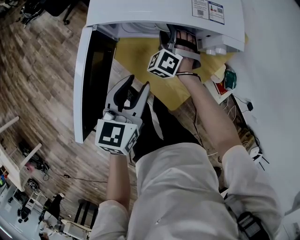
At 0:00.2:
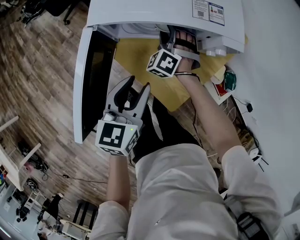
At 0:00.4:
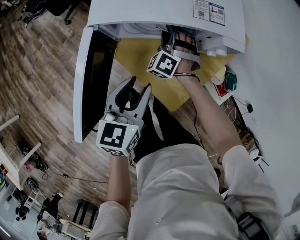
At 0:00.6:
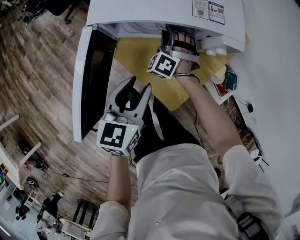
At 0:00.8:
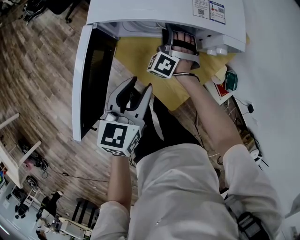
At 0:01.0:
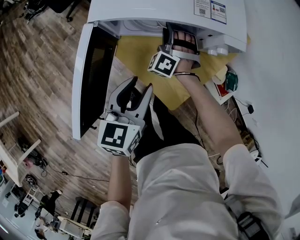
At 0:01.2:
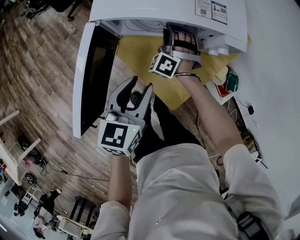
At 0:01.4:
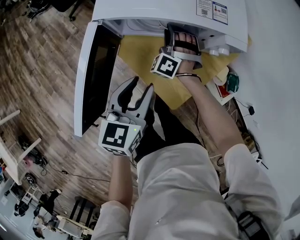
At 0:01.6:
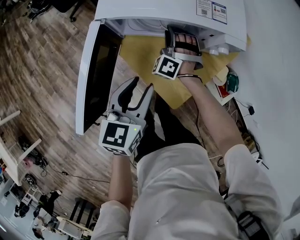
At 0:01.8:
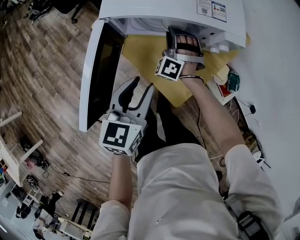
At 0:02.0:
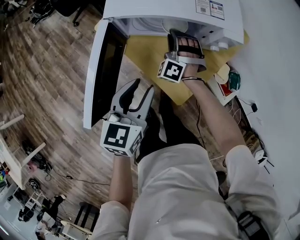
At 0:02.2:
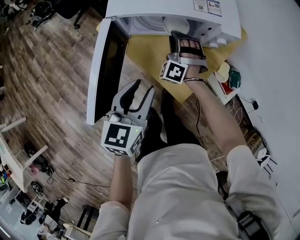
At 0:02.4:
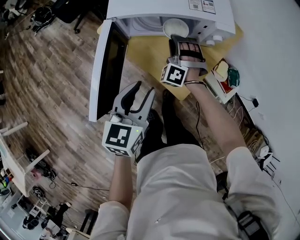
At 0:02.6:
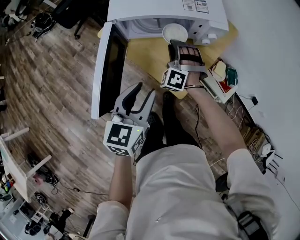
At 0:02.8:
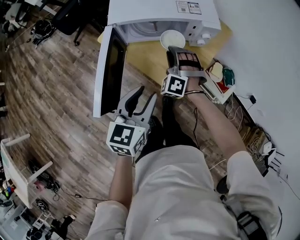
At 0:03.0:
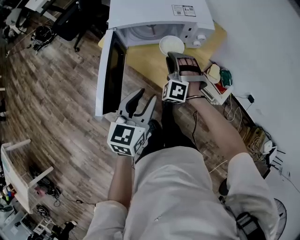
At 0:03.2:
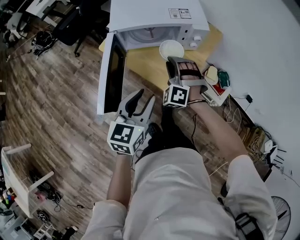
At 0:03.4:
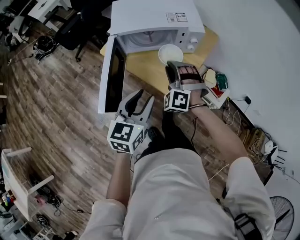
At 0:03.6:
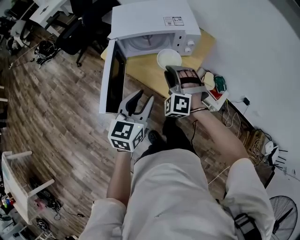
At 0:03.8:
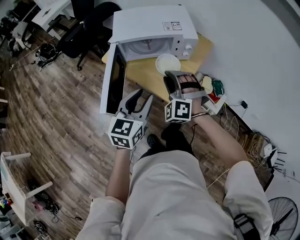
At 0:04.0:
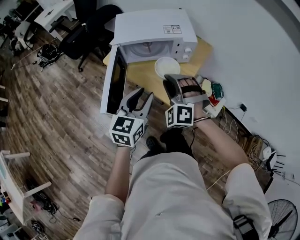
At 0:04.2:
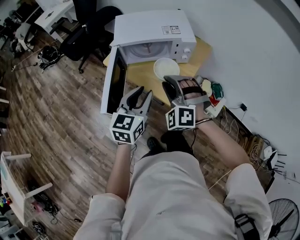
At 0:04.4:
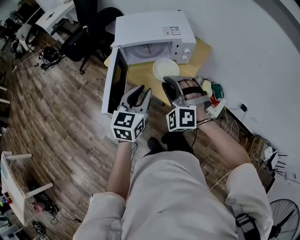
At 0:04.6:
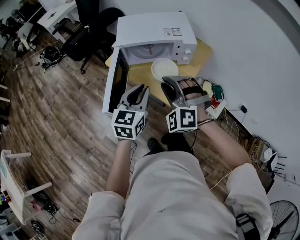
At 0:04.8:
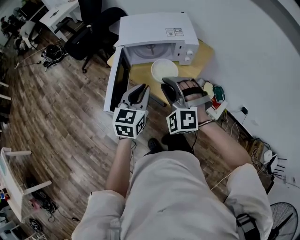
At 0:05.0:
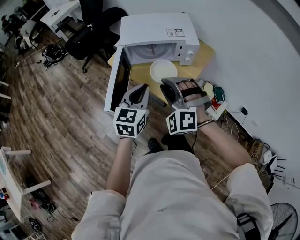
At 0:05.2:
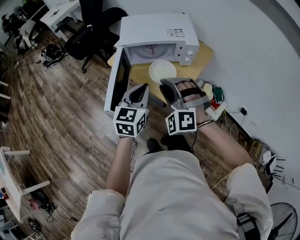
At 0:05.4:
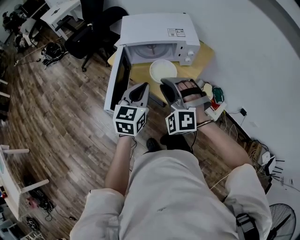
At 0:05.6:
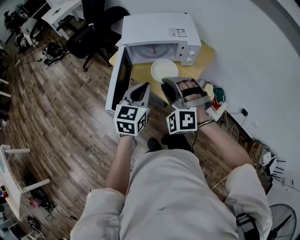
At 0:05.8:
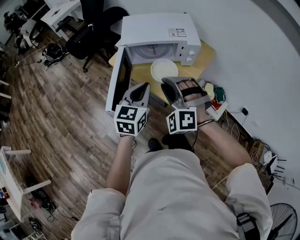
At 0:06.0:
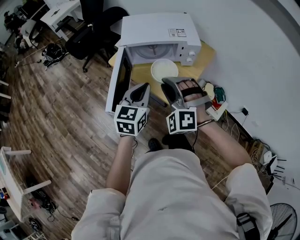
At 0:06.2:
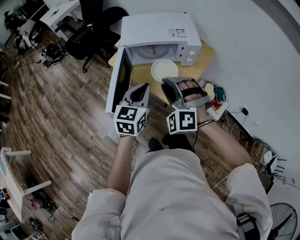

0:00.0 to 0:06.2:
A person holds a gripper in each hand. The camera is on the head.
0:00.0 to 0:01.6: The grippers move only a little.
0:01.6 to 0:03.2: The two grippers go roughly 20 cm backward and upward.
0:03.2 to 0:04.6: The left gripper closes up. The right gripper is displaced upward and backward by approximately 20 cm.
0:04.6 to 0:06.2: There are only small adjustments of the grippers.

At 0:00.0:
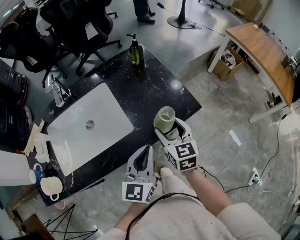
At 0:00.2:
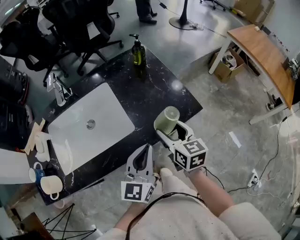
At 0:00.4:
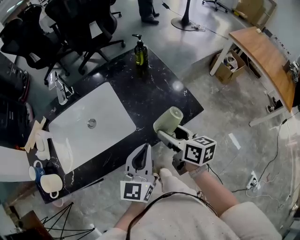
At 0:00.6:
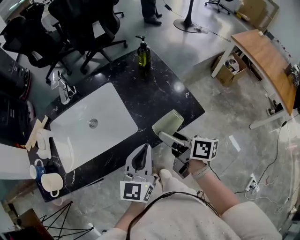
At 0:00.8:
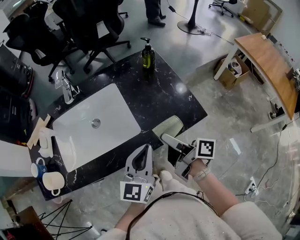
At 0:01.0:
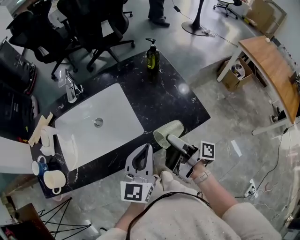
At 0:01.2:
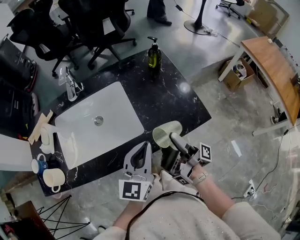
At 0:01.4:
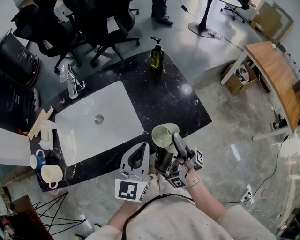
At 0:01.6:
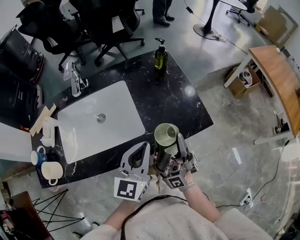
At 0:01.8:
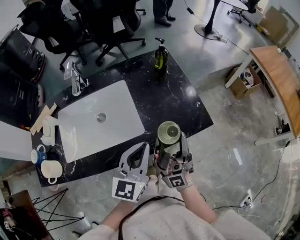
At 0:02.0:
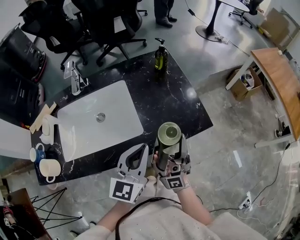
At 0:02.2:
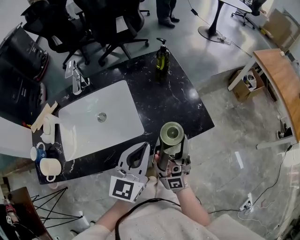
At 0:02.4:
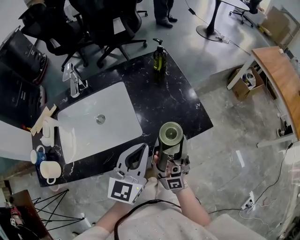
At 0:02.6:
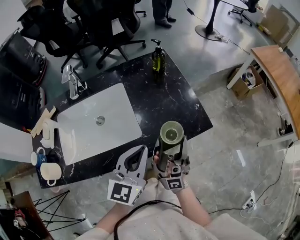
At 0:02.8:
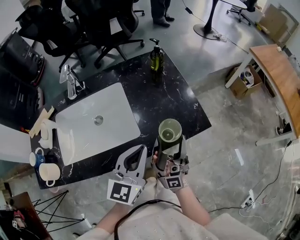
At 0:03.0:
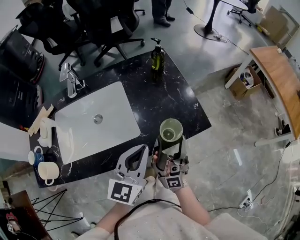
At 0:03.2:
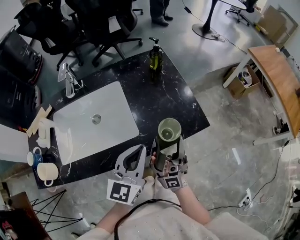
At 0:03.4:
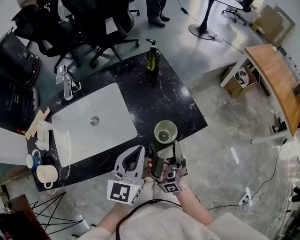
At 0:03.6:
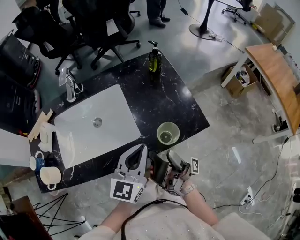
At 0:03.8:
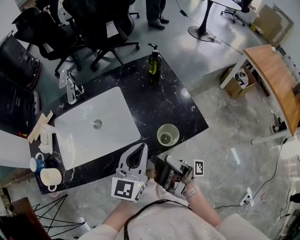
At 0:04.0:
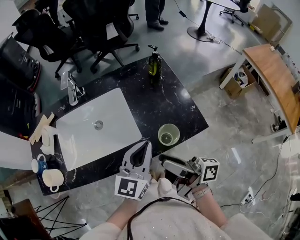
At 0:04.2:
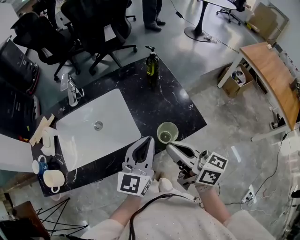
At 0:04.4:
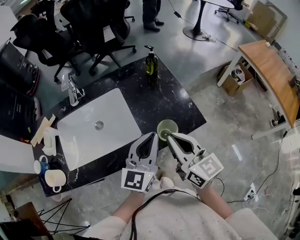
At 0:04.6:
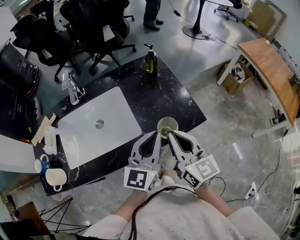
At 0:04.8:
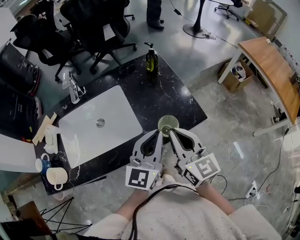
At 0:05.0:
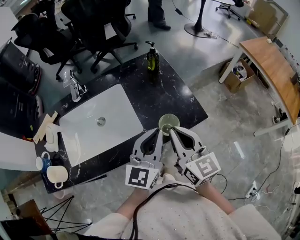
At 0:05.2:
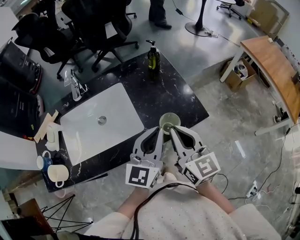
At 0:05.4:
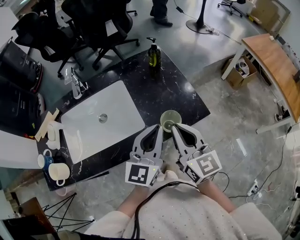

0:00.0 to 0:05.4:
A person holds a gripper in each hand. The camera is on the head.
0:00.0 to 0:01.4: The left gripper ends up approximately 5 cm from where it was.

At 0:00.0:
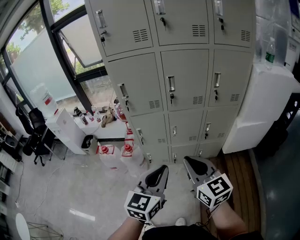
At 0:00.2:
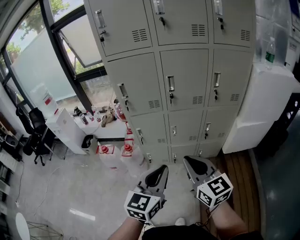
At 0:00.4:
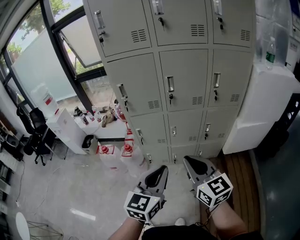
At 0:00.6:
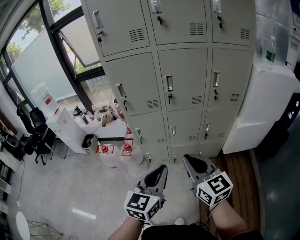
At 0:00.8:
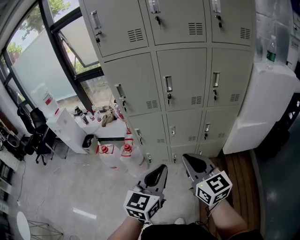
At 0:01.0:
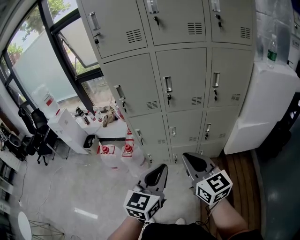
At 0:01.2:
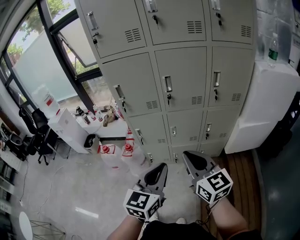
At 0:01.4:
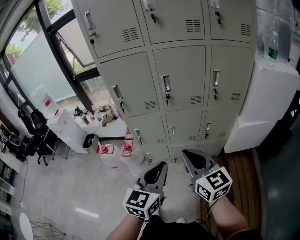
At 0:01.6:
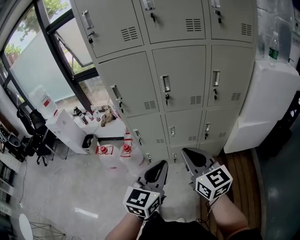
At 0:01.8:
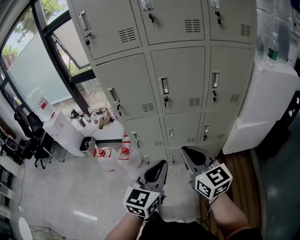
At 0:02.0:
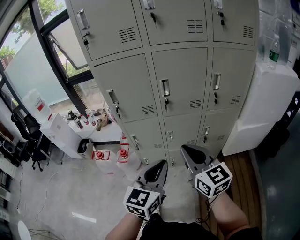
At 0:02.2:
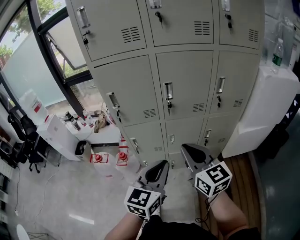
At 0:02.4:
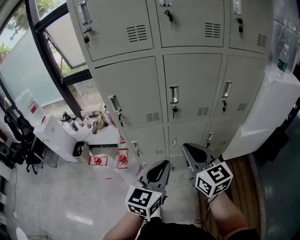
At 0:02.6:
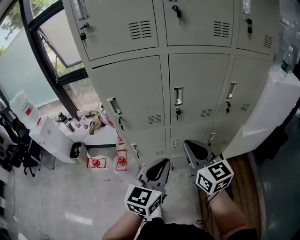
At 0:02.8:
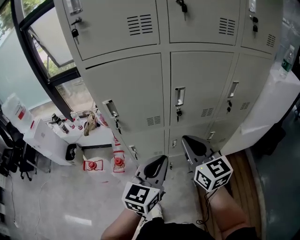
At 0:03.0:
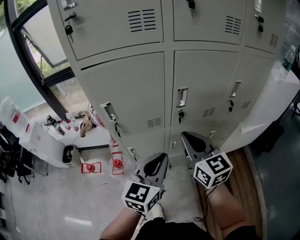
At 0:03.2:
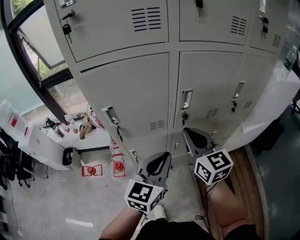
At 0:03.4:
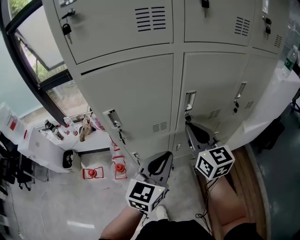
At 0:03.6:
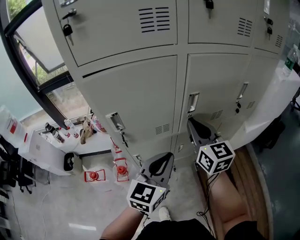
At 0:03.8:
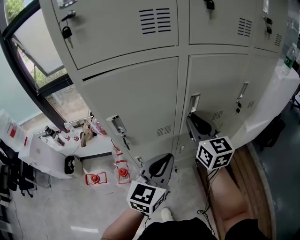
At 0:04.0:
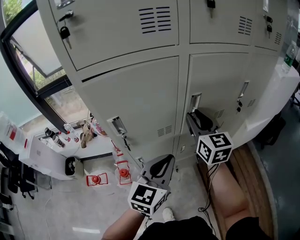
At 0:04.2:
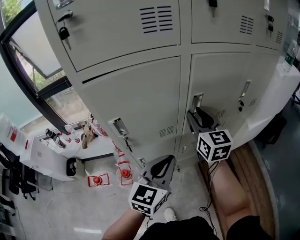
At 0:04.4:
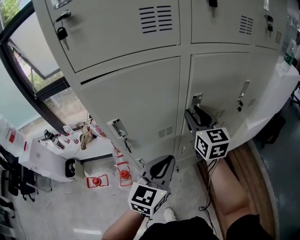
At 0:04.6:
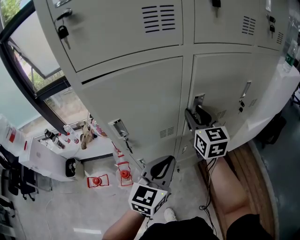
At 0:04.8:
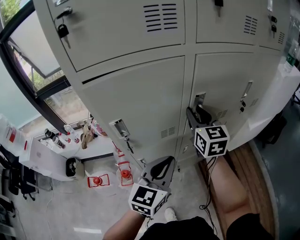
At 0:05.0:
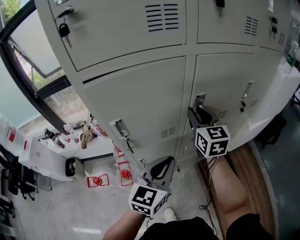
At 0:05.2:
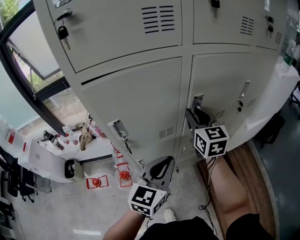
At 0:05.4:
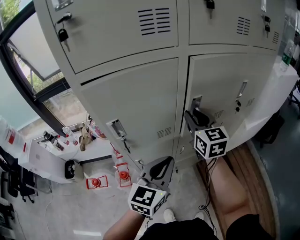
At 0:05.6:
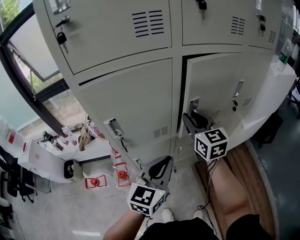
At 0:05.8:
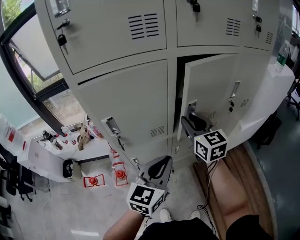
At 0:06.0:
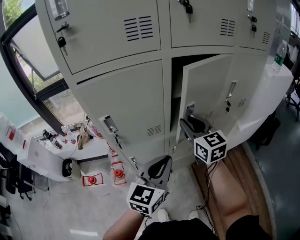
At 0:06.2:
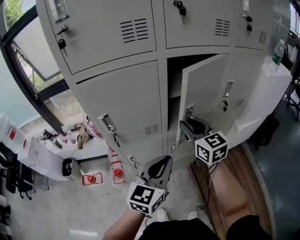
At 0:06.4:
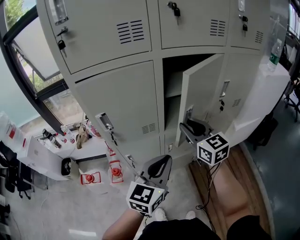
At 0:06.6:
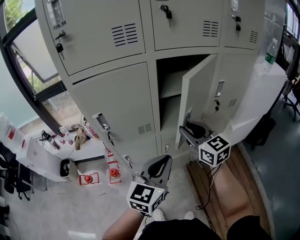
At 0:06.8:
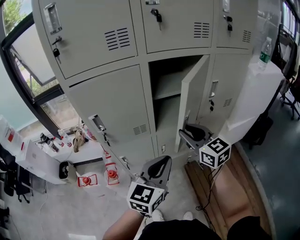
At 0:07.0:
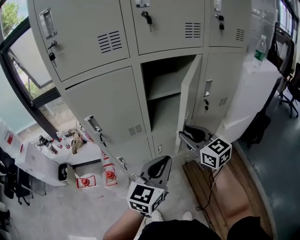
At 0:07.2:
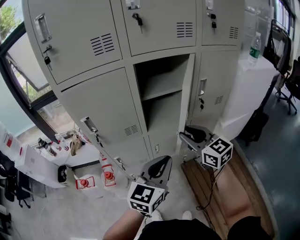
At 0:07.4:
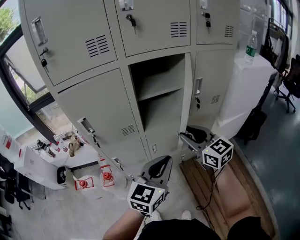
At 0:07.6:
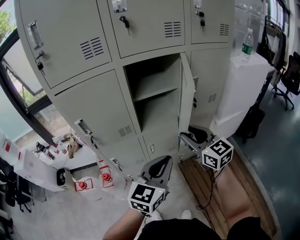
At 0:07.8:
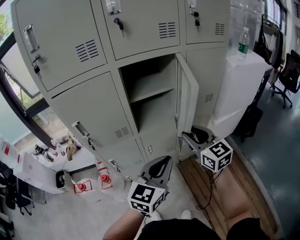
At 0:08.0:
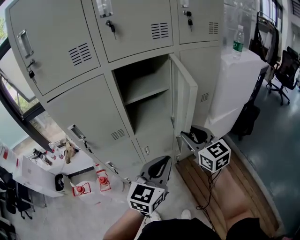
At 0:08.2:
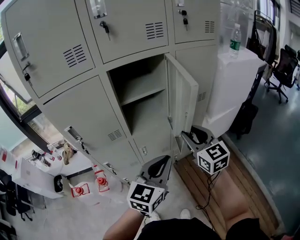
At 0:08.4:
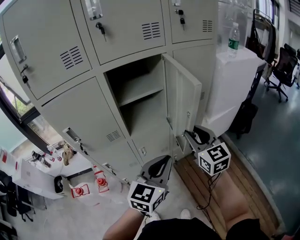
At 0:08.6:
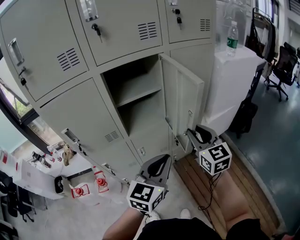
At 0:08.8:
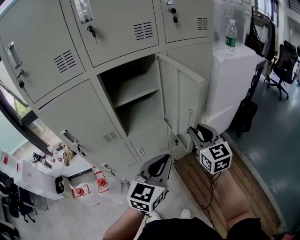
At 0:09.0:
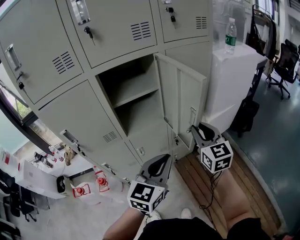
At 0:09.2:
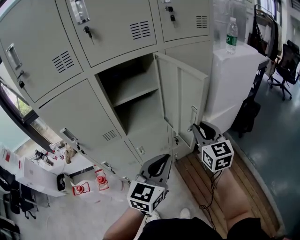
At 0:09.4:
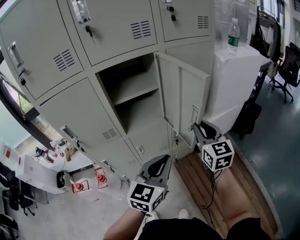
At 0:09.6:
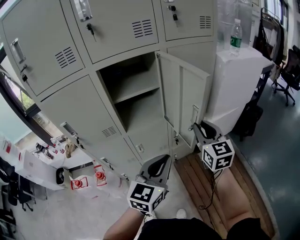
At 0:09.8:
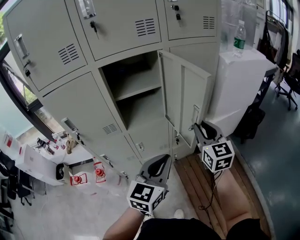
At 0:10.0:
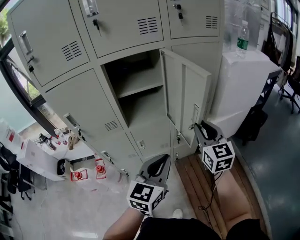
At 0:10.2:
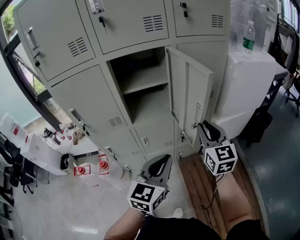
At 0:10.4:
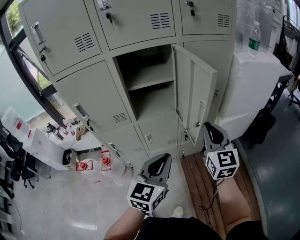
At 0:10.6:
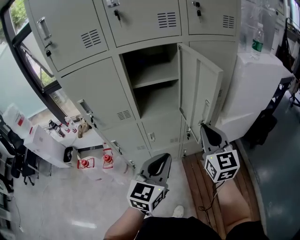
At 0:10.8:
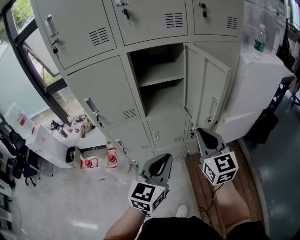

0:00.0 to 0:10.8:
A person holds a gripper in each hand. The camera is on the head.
0:00.0 to 0:01.6: The two grippers go approximately 5 cm forward.
0:01.6 to 0:03.0: Both grippers move forward and to the left, about 25 cm.
0:03.0 to 0:04.6: The left gripper goes some 5 cm to the left. The right gripper shifts roughly 15 cm forward, and opens.
0:04.6 to 0:06.2: The left gripper goes approximately 5 cm to the right. Meanwhile the right gripper is displaced backward by about 5 cm.
0:06.2 to 0:07.8: The left gripper is displaced to the right by some 15 cm; the right gripper moves to the right and backward, approximately 20 cm.
0:07.8 to 0:09.2: The left gripper is displaced to the right by about 5 cm; the right gripper is displaced to the right by some 10 cm.
0:09.2 to 0:10.8: The left gripper shifts about 5 cm backward, while the right gripper is displaced backward and to the left by about 10 cm.

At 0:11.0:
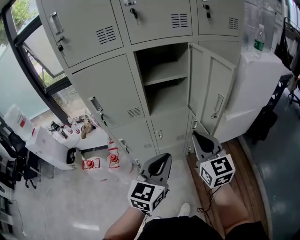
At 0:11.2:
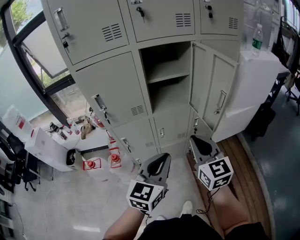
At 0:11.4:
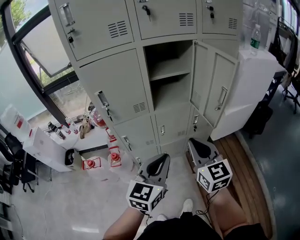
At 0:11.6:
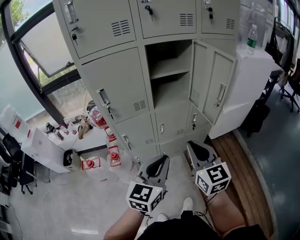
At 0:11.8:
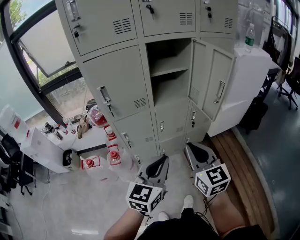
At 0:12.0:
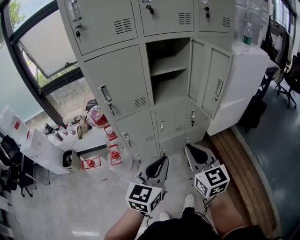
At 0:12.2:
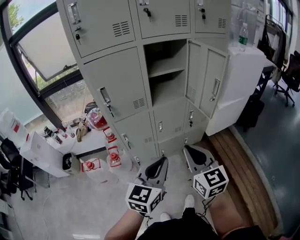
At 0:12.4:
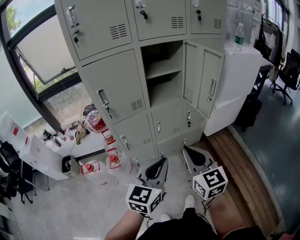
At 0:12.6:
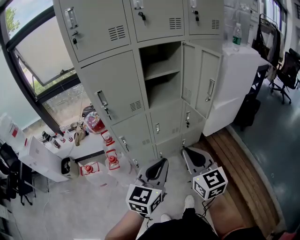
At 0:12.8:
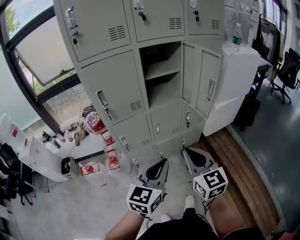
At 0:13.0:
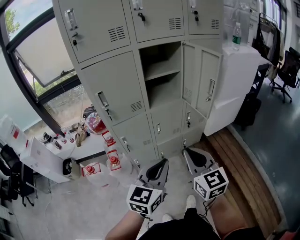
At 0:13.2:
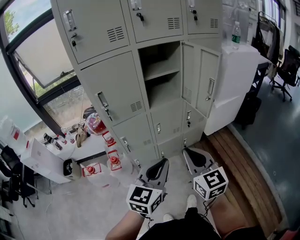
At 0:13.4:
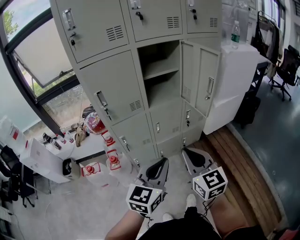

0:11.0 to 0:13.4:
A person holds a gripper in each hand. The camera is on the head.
0:11.0 to 0:12.2: The two grippers go about 15 cm backward and to the left.
0:12.2 to 0:13.4: The grippers make only small movements.
